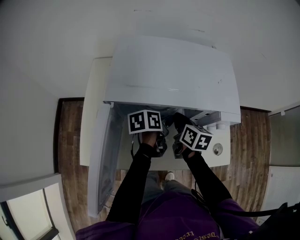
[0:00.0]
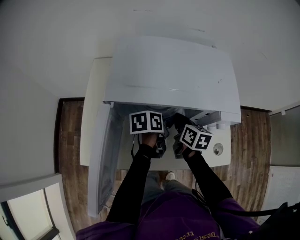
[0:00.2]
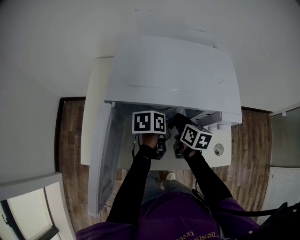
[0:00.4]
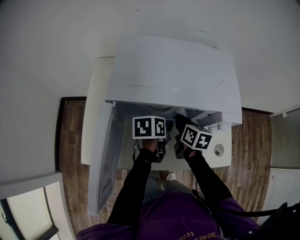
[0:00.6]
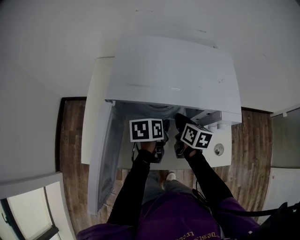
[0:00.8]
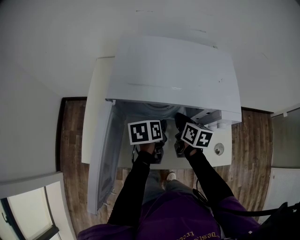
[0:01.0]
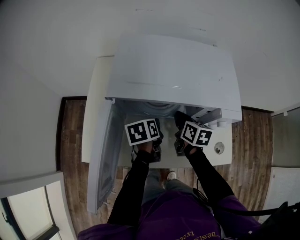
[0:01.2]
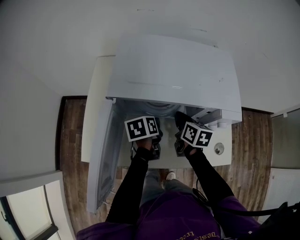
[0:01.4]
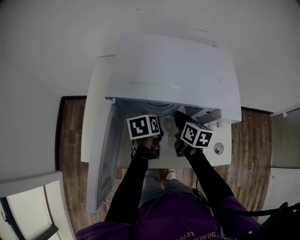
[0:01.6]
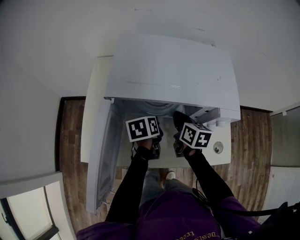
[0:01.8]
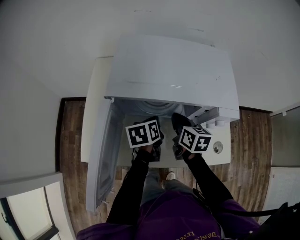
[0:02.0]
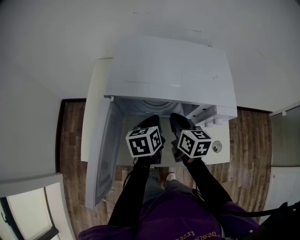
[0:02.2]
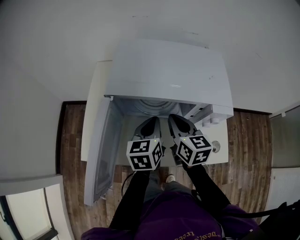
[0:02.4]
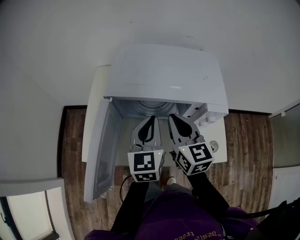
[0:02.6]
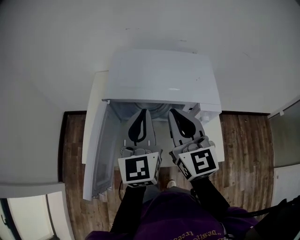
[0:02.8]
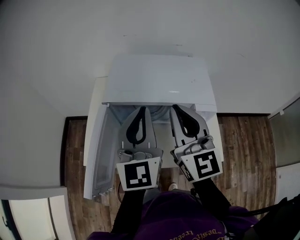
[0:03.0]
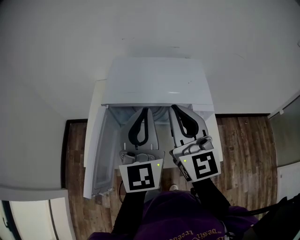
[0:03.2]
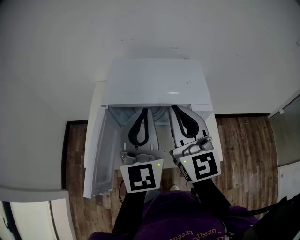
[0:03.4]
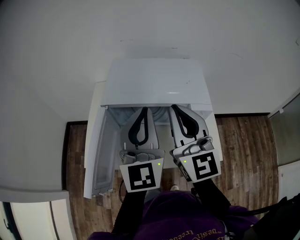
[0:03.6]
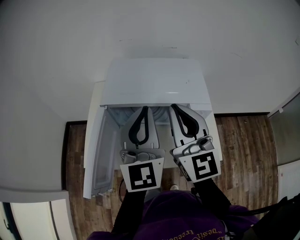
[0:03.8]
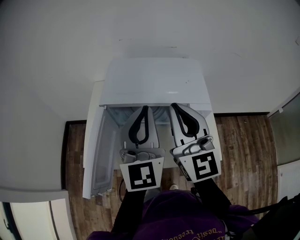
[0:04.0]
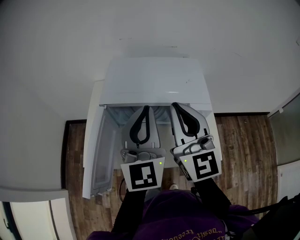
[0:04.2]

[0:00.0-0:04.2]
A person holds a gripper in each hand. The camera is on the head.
0.0 to 1.4 s: The left gripper moves to the left, approximately 5 cm, and closes its fingers.
1.4 to 2.8 s: Both grippers move upward, approximately 25 cm. The right gripper angles its fingers upward, by roughly 30 degrees, while the left gripper angles its fingers upward, by approximately 50 degrees.
2.8 to 4.2 s: The grippers both shift upward by some 5 cm.

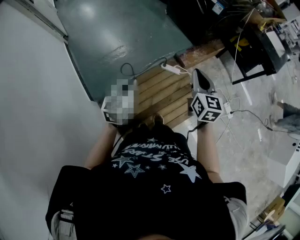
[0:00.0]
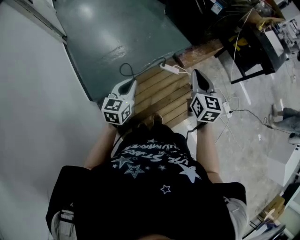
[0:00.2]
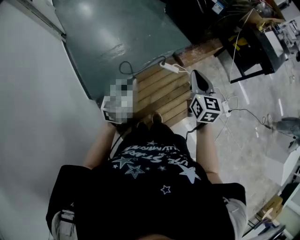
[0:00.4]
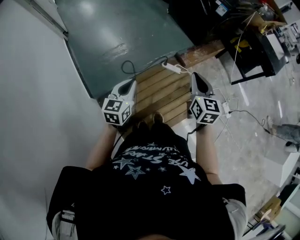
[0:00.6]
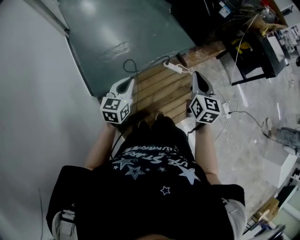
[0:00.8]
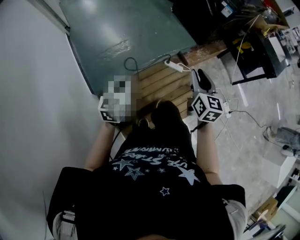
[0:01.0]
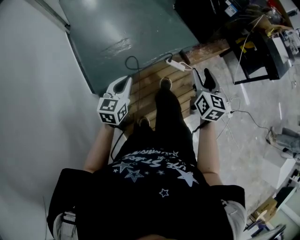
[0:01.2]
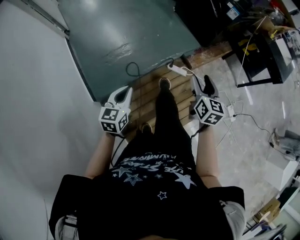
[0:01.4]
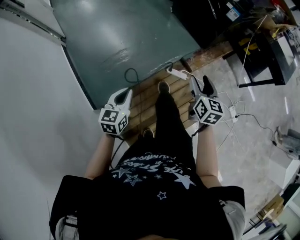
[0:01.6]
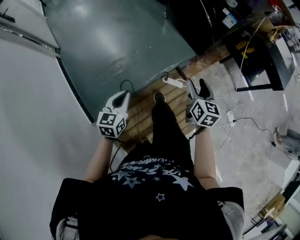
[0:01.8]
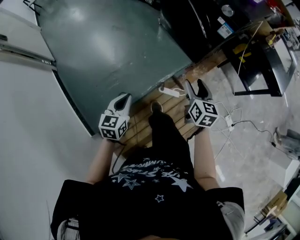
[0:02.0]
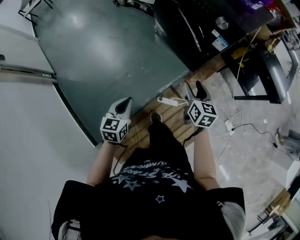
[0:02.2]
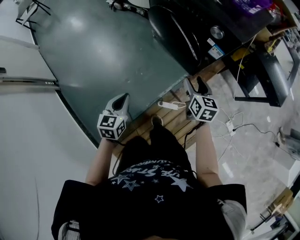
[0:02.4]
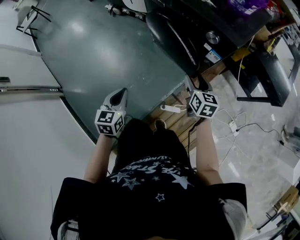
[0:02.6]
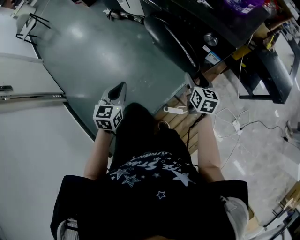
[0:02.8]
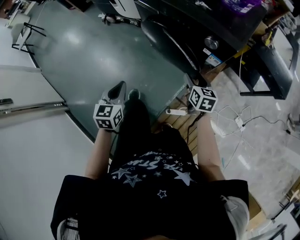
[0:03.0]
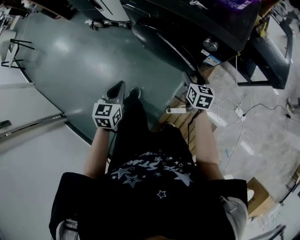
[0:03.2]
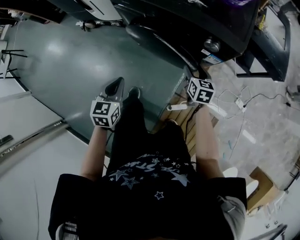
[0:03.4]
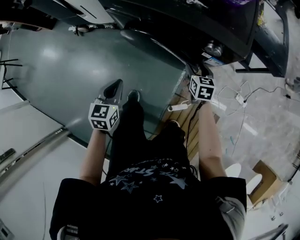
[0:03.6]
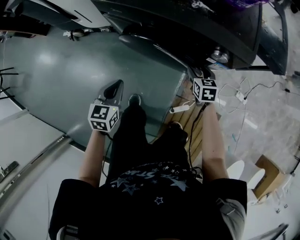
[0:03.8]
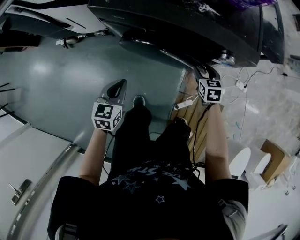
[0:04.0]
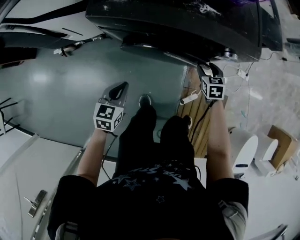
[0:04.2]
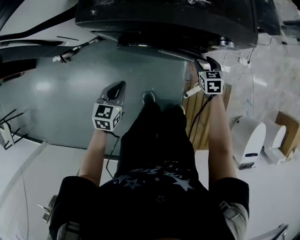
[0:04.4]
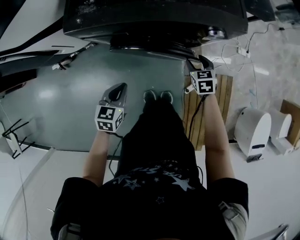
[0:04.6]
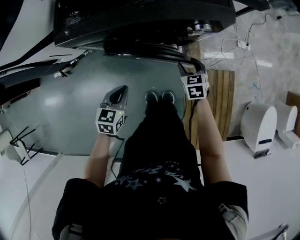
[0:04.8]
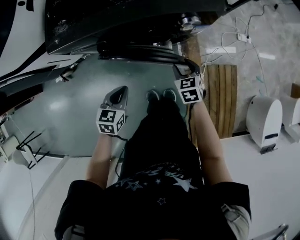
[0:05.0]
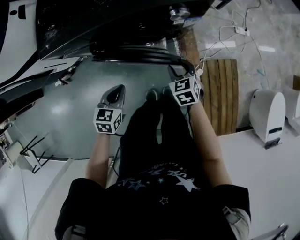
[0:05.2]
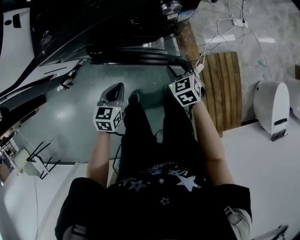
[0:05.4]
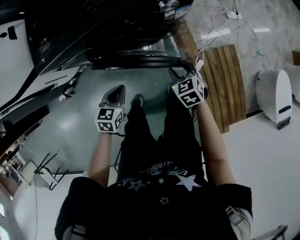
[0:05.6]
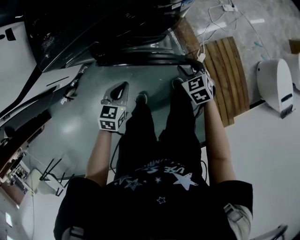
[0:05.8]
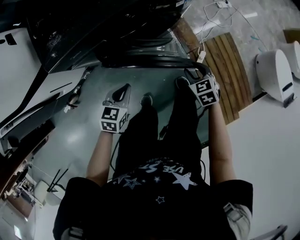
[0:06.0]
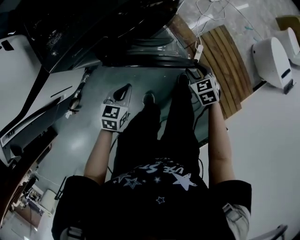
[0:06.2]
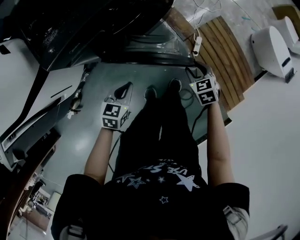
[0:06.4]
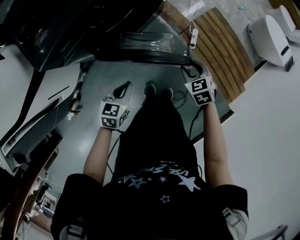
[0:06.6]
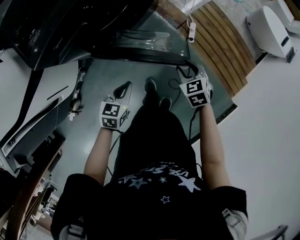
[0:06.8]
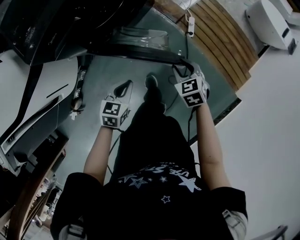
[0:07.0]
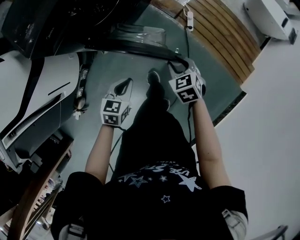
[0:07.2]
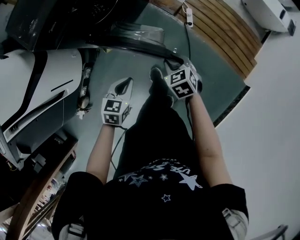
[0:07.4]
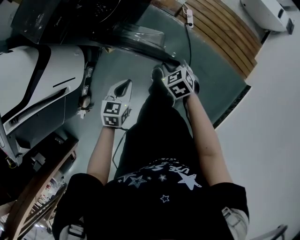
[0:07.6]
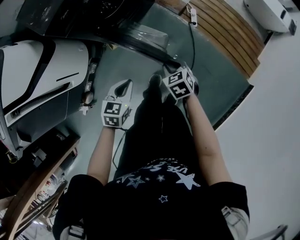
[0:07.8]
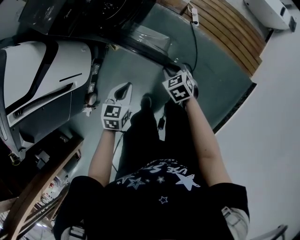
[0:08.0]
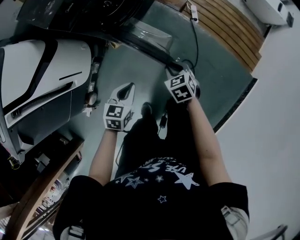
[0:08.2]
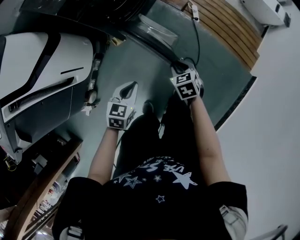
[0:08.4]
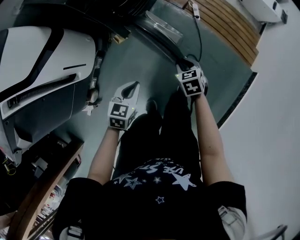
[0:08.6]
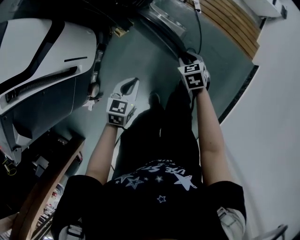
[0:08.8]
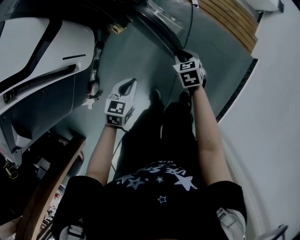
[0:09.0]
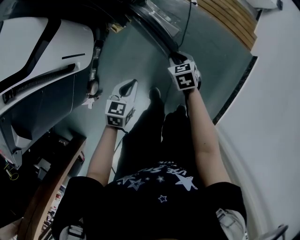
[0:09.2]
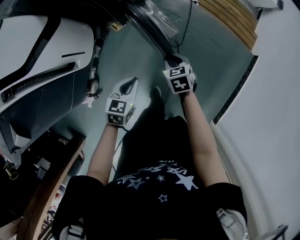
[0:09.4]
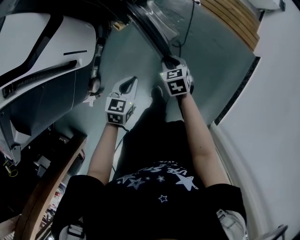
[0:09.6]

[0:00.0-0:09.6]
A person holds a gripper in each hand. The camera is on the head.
0.0 to 1.6 s: The left gripper travels to the left, forward and downward by roughly 10 cm; the right gripper heads forward and downward, covering roughly 15 cm, and opens its fingers.
1.6 to 3.2 s: Both grippers are carried forward, approximately 50 cm. The left gripper swivels some 20 degrees. The right gripper rotates about 20 degrees.
3.2 to 4.8 s: The right gripper goes about 5 cm downward, and rotates roughly 30 degrees. Meanwhile the left gripper changes place by some 15 cm, and rotates some 50 degrees.
4.8 to 6.4 s: The right gripper ends up roughly 20 cm from where it was, and rotates approximately 20 degrees; the left gripper ends up approximately 10 cm from where it was, and rotates approximately 40 degrees.
6.4 to 8.0 s: The grippers both shift backward by approximately 25 cm.
8.0 to 9.6 s: The left gripper heads backward and to the left, covering approximately 20 cm. The right gripper shifts about 25 cm to the left and backward.

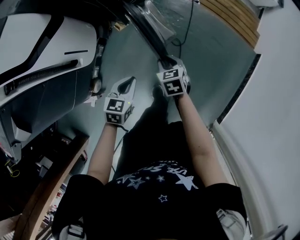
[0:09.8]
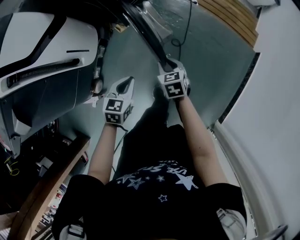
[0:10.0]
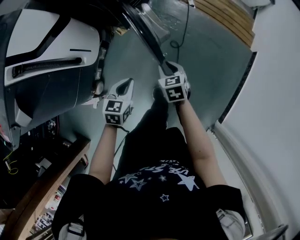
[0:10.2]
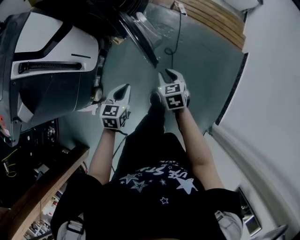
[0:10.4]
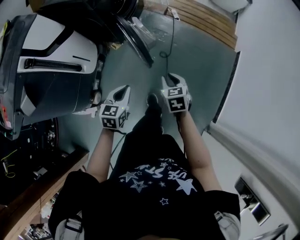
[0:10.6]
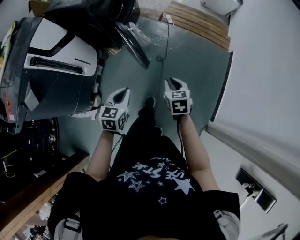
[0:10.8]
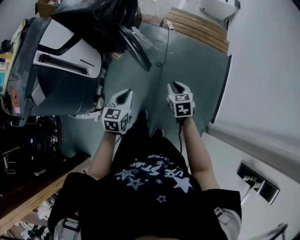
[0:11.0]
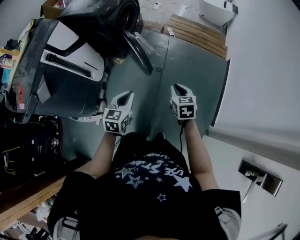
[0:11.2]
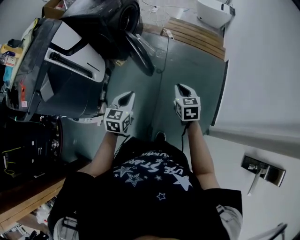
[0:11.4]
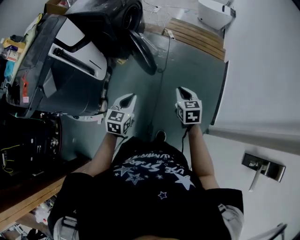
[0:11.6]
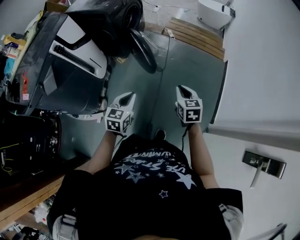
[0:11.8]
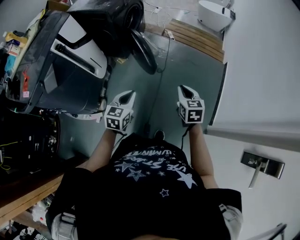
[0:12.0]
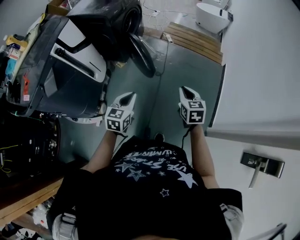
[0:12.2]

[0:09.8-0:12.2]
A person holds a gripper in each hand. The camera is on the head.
9.8 to 11.0 s: The right gripper shifts roughly 35 cm backward, upward and to the right. Meanwhile the left gripper travels backward and upward by approximately 30 cm.
11.0 to 12.2 s: The left gripper goes roughly 5 cm backward, while the right gripper heads upward and backward, covering approximately 10 cm.

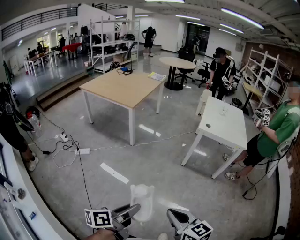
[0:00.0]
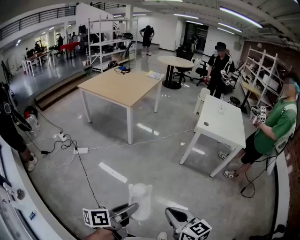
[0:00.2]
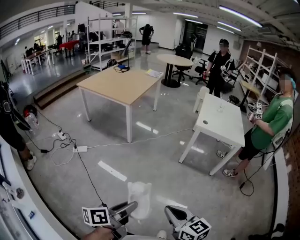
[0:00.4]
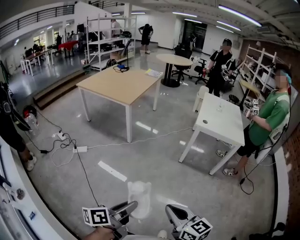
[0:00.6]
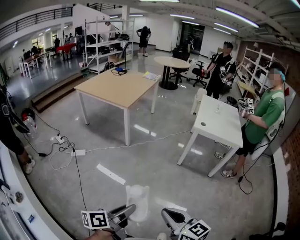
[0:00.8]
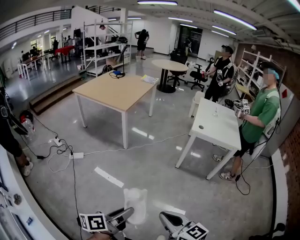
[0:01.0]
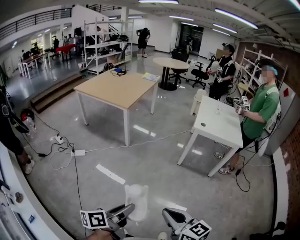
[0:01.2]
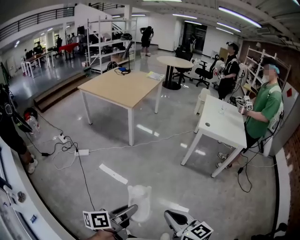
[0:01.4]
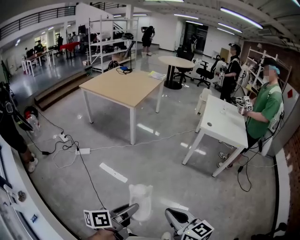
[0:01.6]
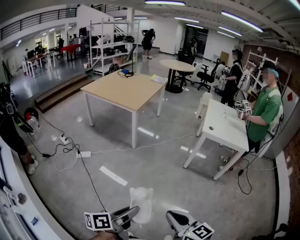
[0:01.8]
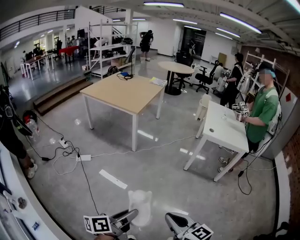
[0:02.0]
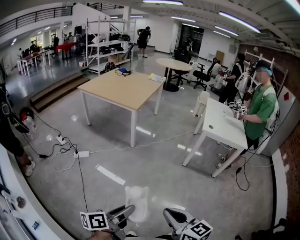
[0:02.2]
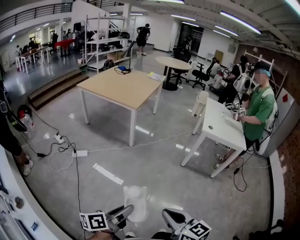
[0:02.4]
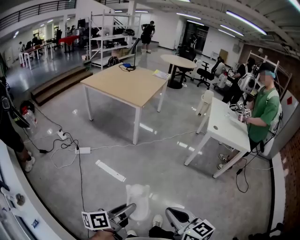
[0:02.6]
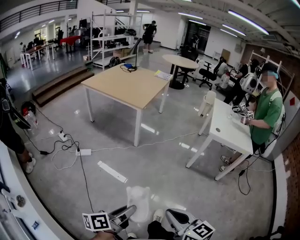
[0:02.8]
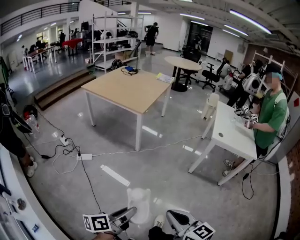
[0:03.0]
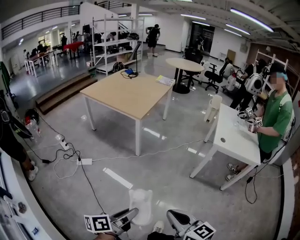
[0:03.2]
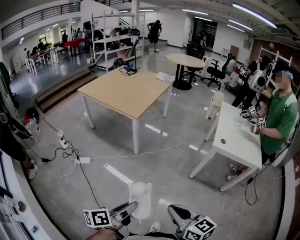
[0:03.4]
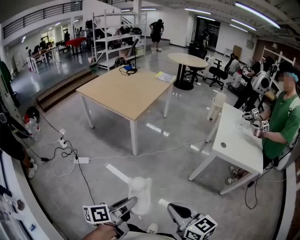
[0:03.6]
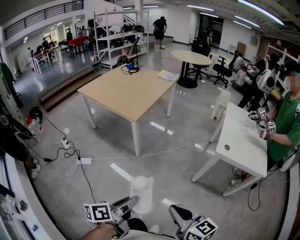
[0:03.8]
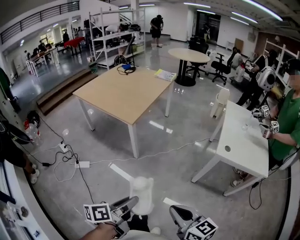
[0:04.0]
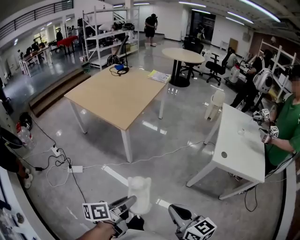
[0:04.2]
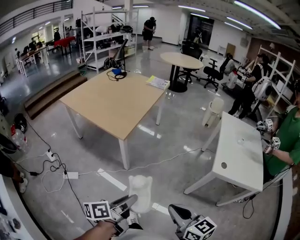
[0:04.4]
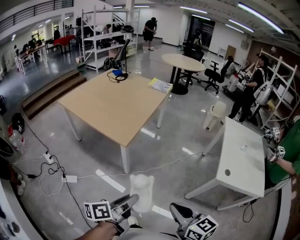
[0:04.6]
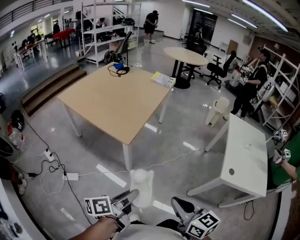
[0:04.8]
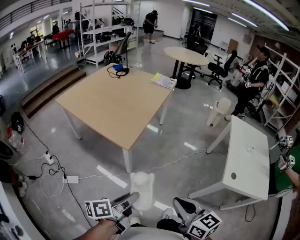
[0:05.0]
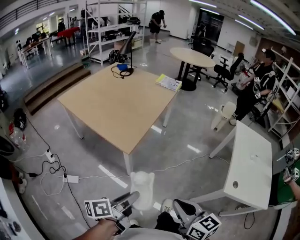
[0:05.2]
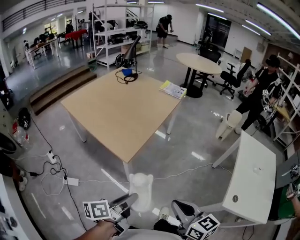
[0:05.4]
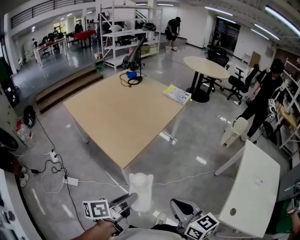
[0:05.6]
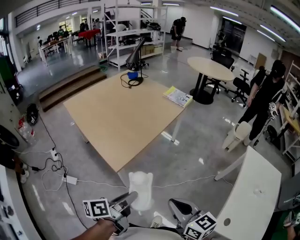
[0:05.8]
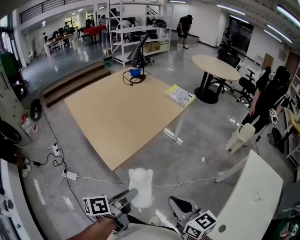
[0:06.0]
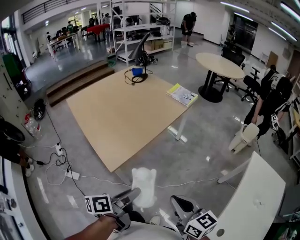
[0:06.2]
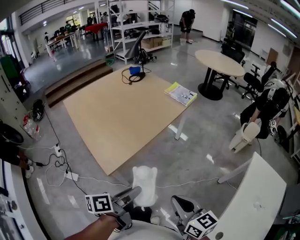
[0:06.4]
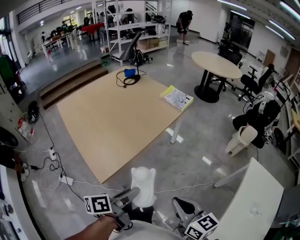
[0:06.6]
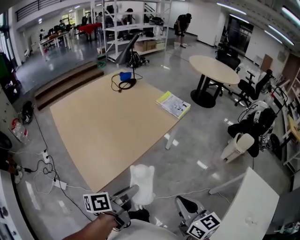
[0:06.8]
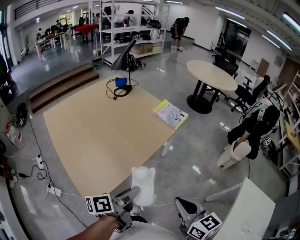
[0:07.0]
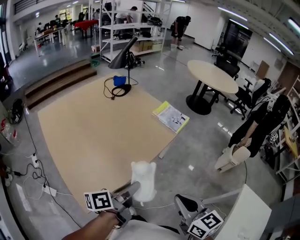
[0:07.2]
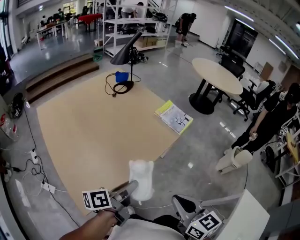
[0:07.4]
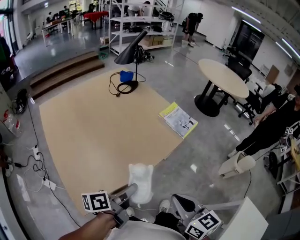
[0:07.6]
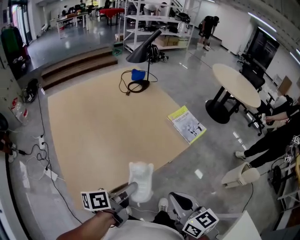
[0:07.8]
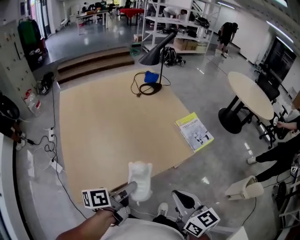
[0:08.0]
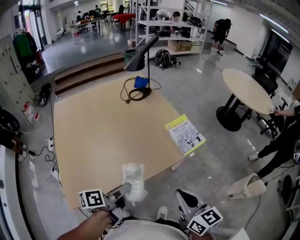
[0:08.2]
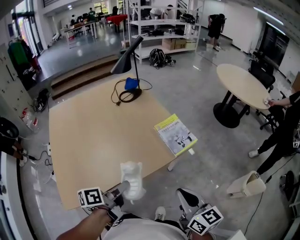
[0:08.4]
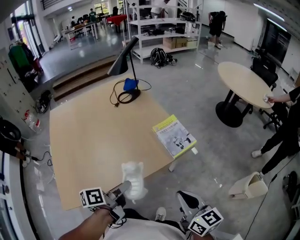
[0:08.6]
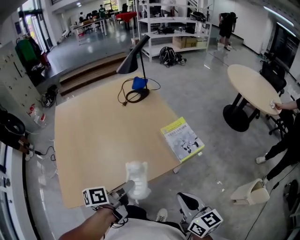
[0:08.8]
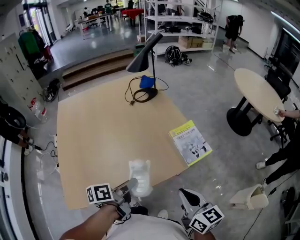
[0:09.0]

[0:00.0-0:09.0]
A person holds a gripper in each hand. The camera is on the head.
0.0 to 1.6 s: There are only small adjustments of the grippers.
1.6 to 3.0 s: Both grippers move forward and to the left, about 10 cm.
3.0 to 4.4 s: The two grippers go roughly 35 cm forward.
4.4 to 6.0 s: Both grippers move forward, approximately 30 cm.
6.0 to 7.6 s: The grippers both shift forward by roughly 30 cm.
7.6 to 9.0 s: The right gripper travels forward and to the right by some 20 cm. Meanwhile the left gripper goes some 15 cm forward, and swivels approximately 20 degrees.
